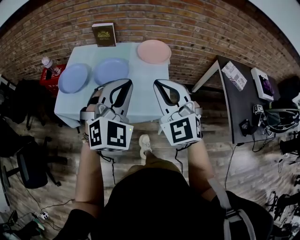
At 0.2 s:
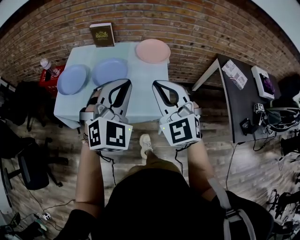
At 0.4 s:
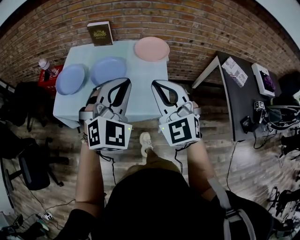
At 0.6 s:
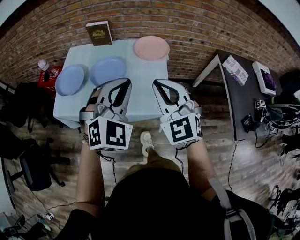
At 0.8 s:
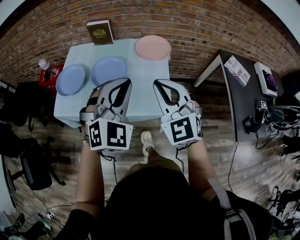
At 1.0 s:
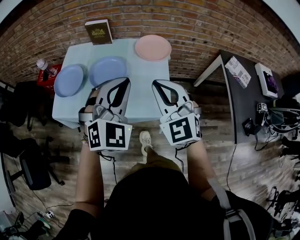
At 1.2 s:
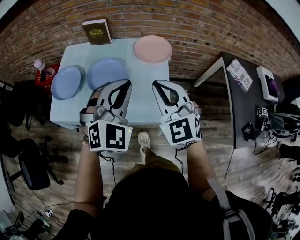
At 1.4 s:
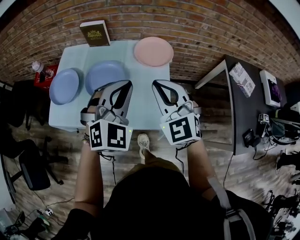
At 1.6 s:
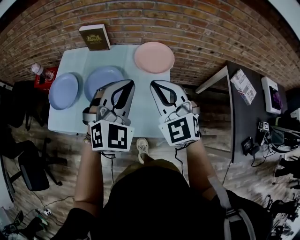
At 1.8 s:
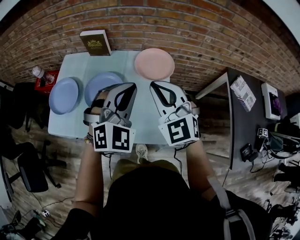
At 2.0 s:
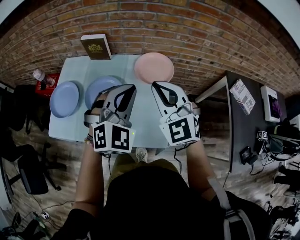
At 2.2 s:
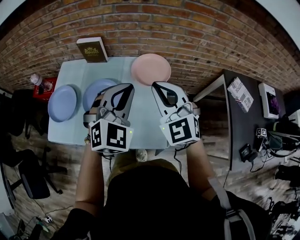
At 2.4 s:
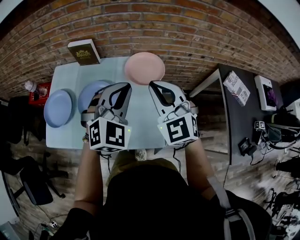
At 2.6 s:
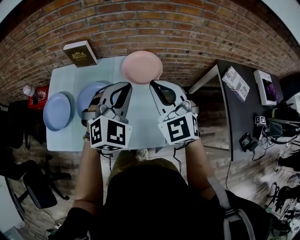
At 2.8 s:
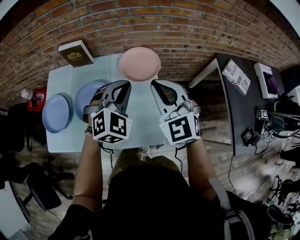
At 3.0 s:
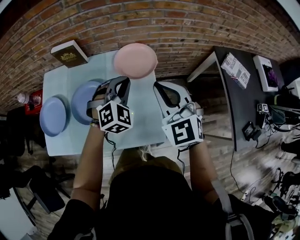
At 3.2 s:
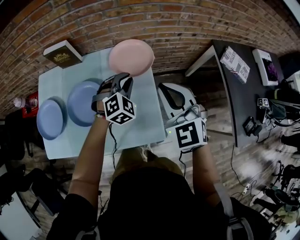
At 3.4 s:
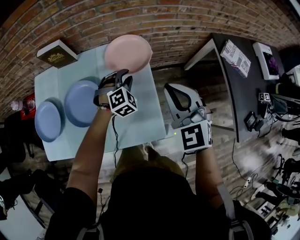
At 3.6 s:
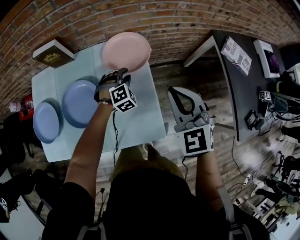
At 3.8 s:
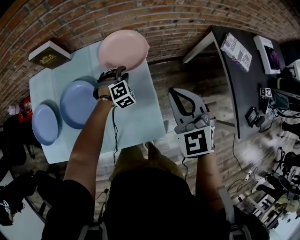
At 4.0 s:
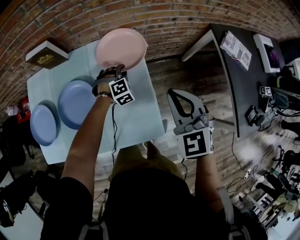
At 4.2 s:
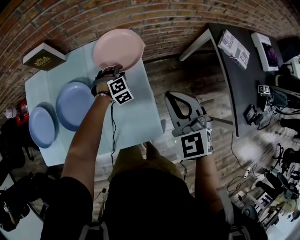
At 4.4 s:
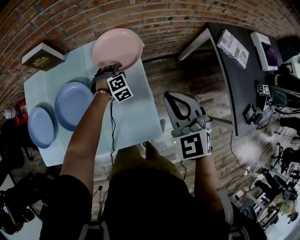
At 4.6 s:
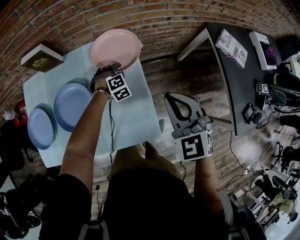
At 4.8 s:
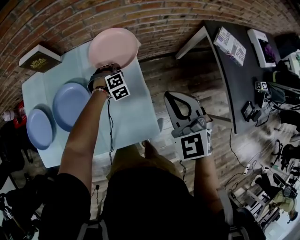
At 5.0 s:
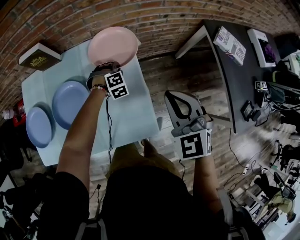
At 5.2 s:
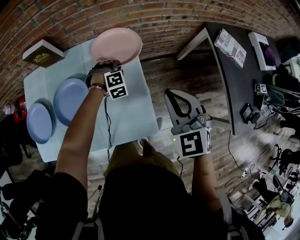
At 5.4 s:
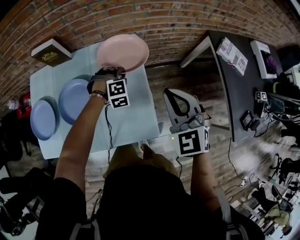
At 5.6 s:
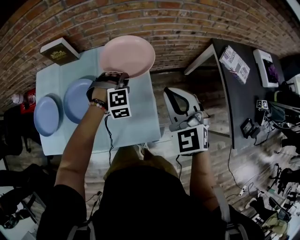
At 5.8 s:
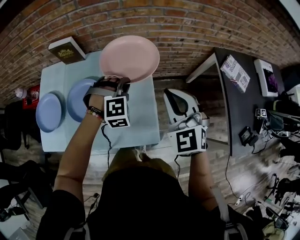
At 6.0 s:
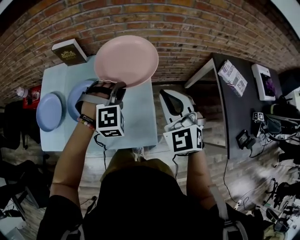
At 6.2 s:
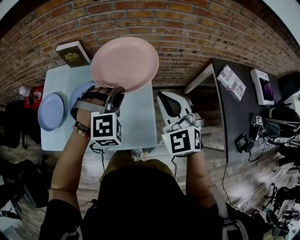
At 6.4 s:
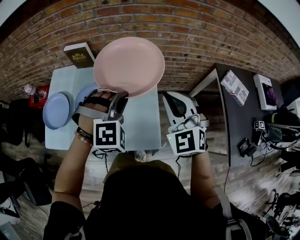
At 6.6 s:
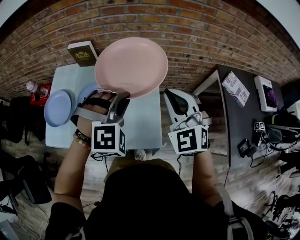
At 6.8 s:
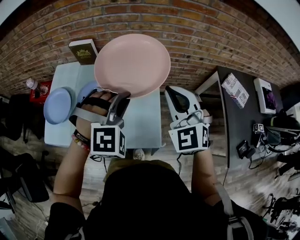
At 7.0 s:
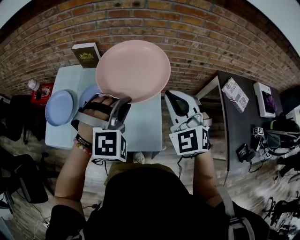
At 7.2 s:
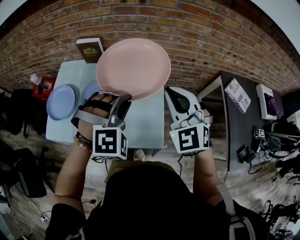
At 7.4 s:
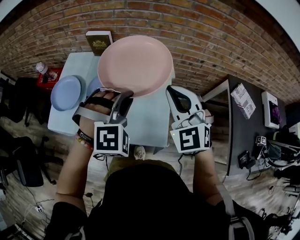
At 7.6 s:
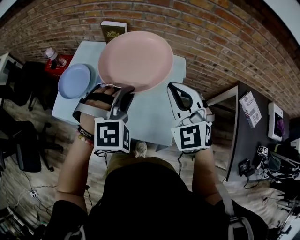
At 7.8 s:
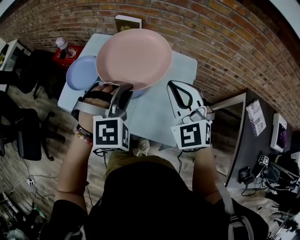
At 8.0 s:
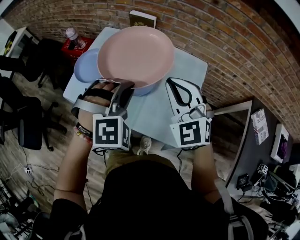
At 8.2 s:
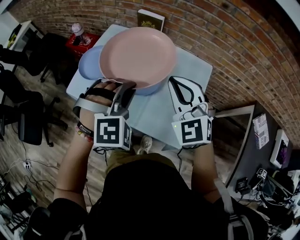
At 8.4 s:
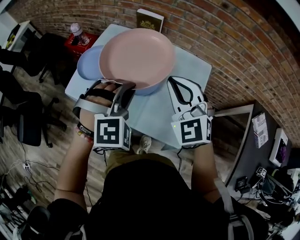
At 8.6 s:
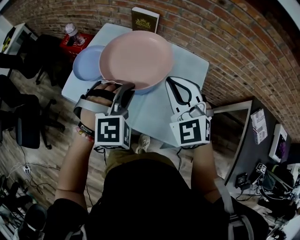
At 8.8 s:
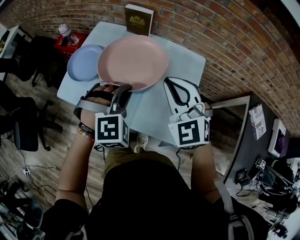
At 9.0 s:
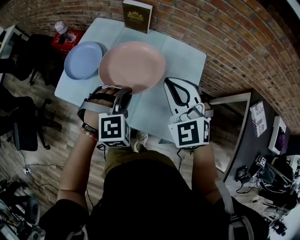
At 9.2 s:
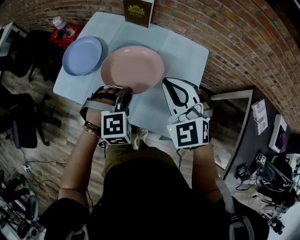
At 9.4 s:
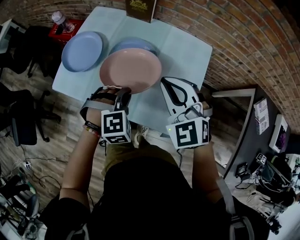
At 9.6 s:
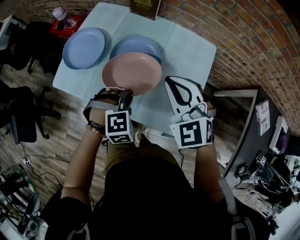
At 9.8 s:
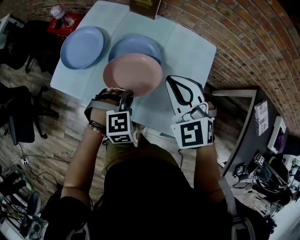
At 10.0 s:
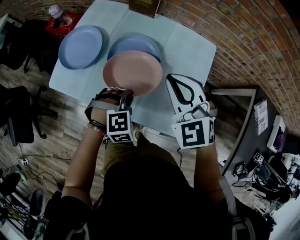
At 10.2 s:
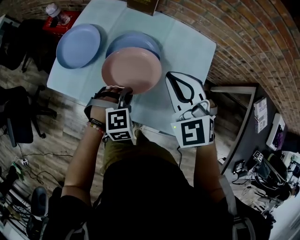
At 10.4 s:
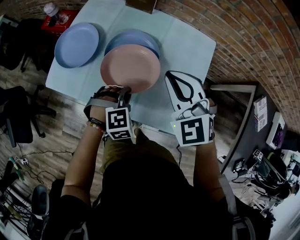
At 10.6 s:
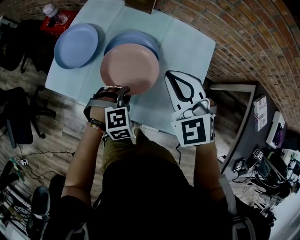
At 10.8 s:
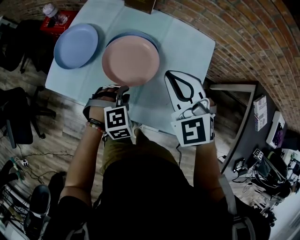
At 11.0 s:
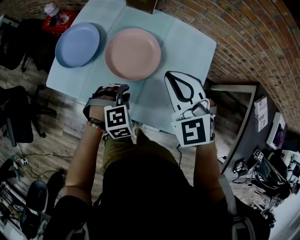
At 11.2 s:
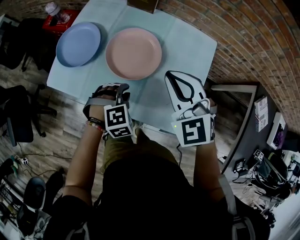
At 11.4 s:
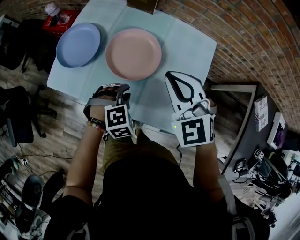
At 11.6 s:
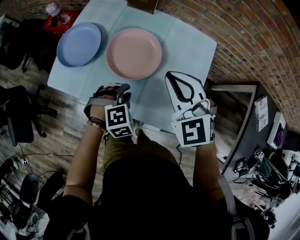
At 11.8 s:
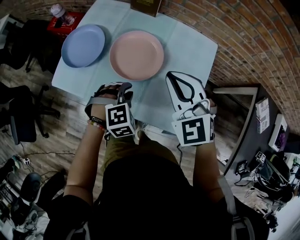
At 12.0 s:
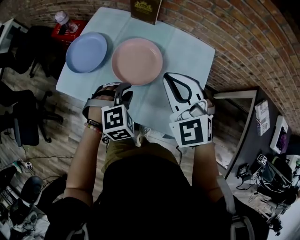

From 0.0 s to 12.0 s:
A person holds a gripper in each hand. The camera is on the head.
From 0.0 s to 1.6 s: Both grippers move forward, approximately 20 cm.
From 1.6 s to 3.0 s: The right gripper shifts about 10 cm to the right and forward; the left gripper moves forward, downward and to the right, roughly 20 cm.
From 3.0 s to 4.4 s: The left gripper heads downward and forward, covering roughly 25 cm, turns by some 30 degrees, and opens up. The right gripper travels downward and to the right by some 10 cm.
From 4.4 s to 6.0 s: The right gripper travels upward by approximately 10 cm. Meanwhile the left gripper goes roughly 30 cm upward and backward, and closes up.
From 6.0 s to 7.6 s: The right gripper travels to the left by roughly 10 cm; the left gripper goes about 20 cm to the left, backward and upward.
From 7.6 s to 9.0 s: The left gripper goes roughly 15 cm downward and to the left; the right gripper travels to the left and downward by approximately 10 cm.
From 9.0 s to 10.4 s: The left gripper shifts roughly 15 cm downward. The right gripper goes approximately 5 cm downward.
From 10.4 s to 12.0 s: The right gripper changes place by roughly 5 cm. Meanwhile the left gripper shifts some 10 cm upward.

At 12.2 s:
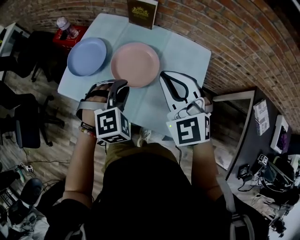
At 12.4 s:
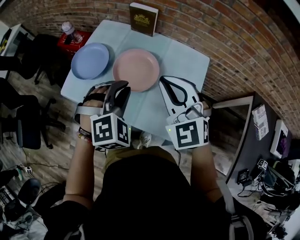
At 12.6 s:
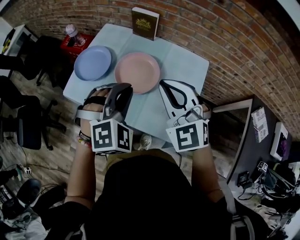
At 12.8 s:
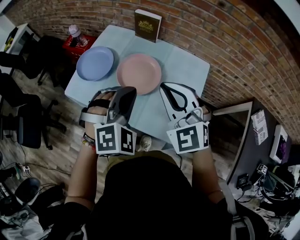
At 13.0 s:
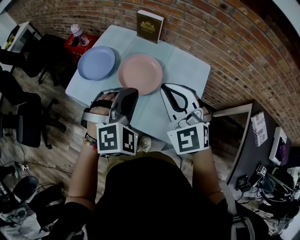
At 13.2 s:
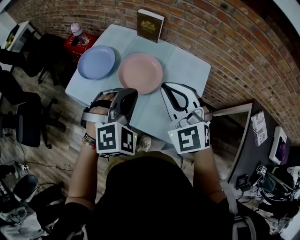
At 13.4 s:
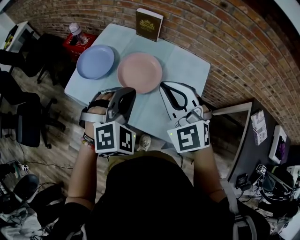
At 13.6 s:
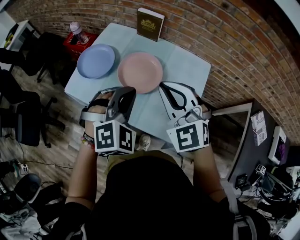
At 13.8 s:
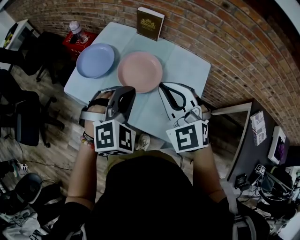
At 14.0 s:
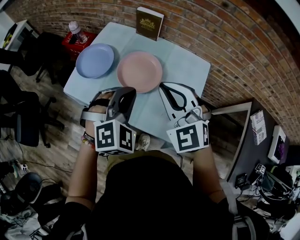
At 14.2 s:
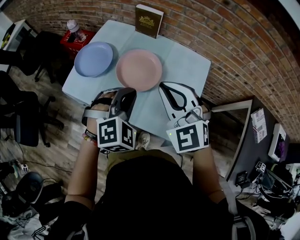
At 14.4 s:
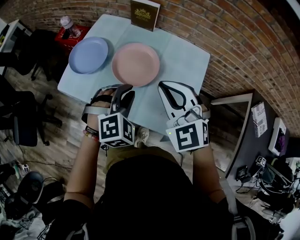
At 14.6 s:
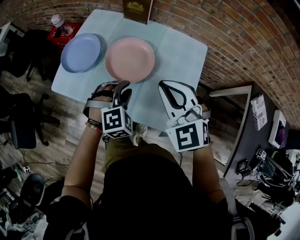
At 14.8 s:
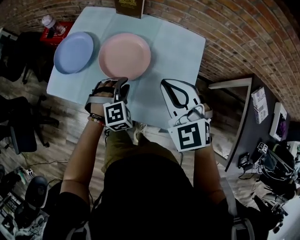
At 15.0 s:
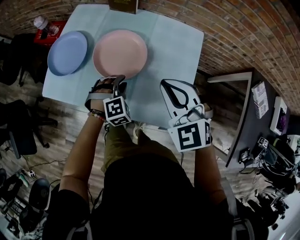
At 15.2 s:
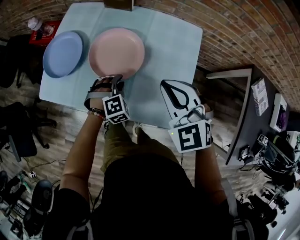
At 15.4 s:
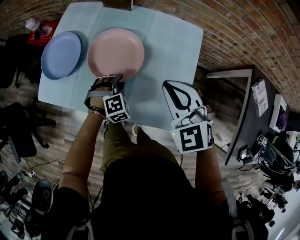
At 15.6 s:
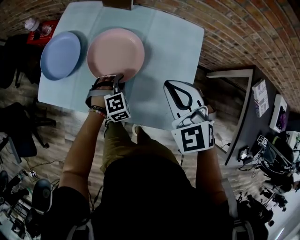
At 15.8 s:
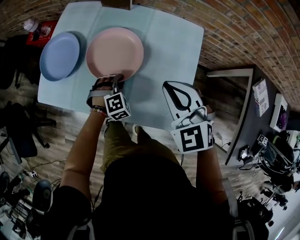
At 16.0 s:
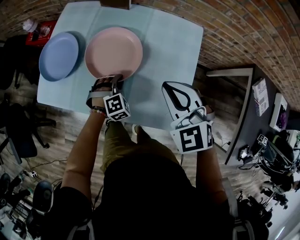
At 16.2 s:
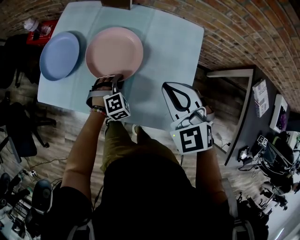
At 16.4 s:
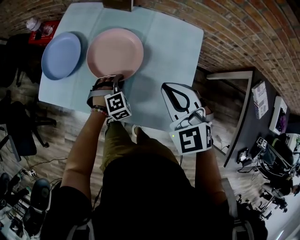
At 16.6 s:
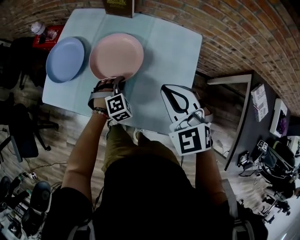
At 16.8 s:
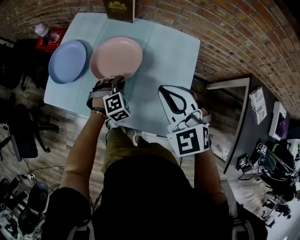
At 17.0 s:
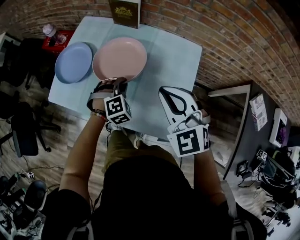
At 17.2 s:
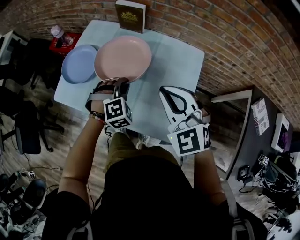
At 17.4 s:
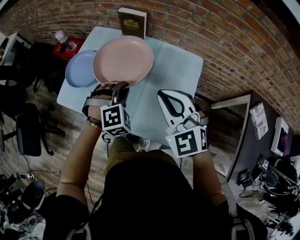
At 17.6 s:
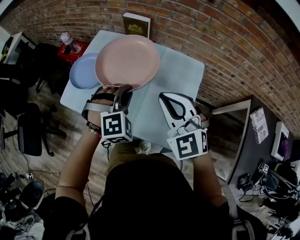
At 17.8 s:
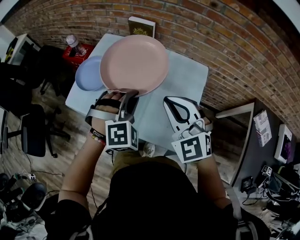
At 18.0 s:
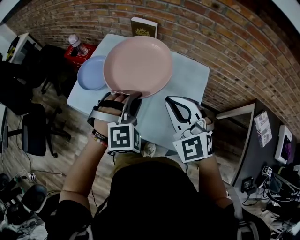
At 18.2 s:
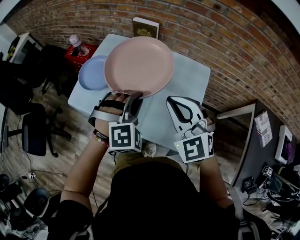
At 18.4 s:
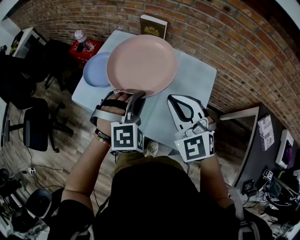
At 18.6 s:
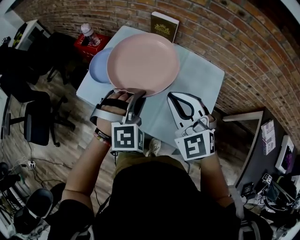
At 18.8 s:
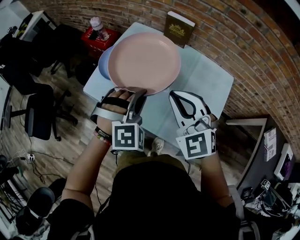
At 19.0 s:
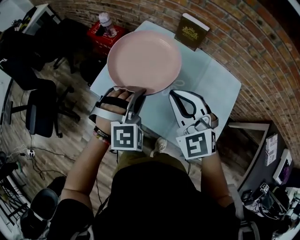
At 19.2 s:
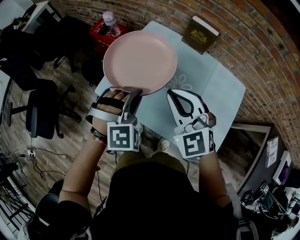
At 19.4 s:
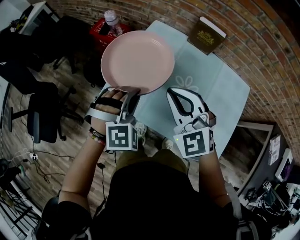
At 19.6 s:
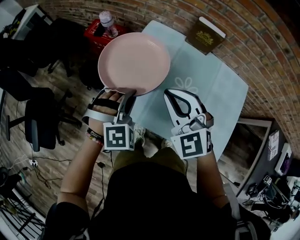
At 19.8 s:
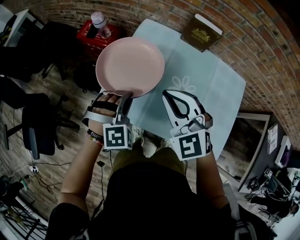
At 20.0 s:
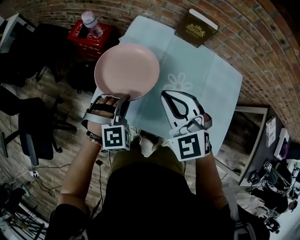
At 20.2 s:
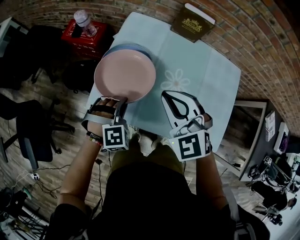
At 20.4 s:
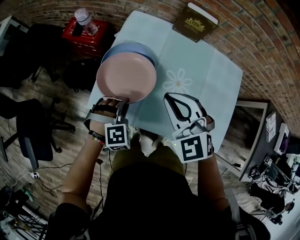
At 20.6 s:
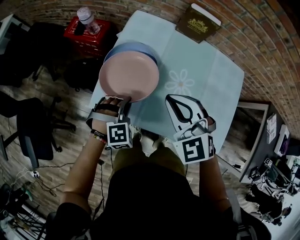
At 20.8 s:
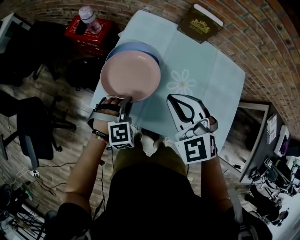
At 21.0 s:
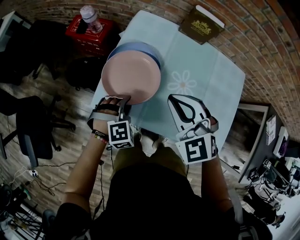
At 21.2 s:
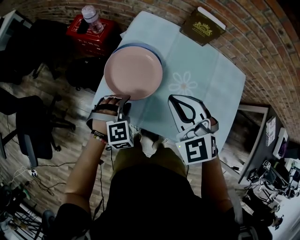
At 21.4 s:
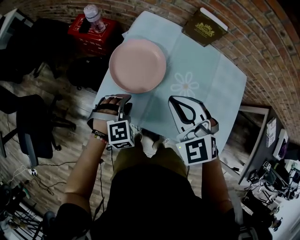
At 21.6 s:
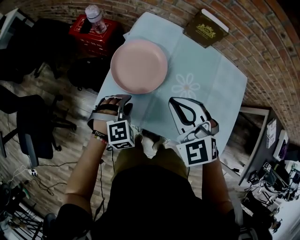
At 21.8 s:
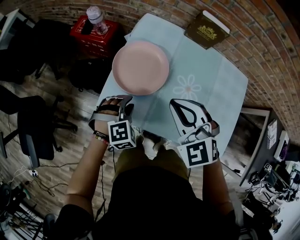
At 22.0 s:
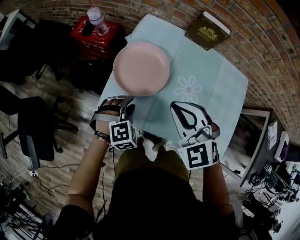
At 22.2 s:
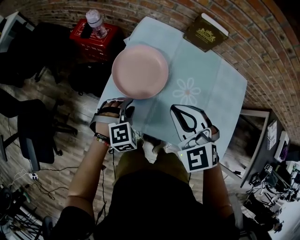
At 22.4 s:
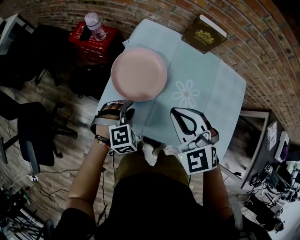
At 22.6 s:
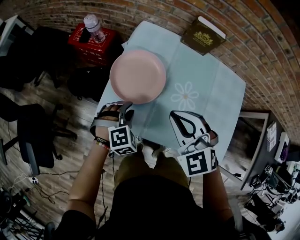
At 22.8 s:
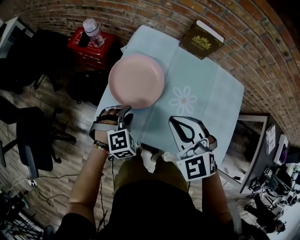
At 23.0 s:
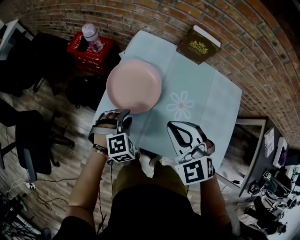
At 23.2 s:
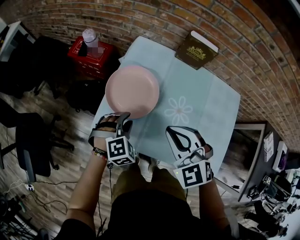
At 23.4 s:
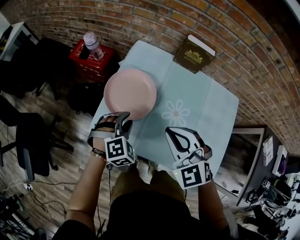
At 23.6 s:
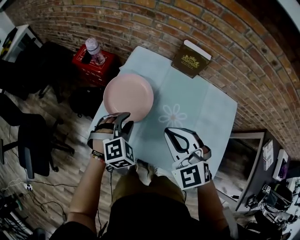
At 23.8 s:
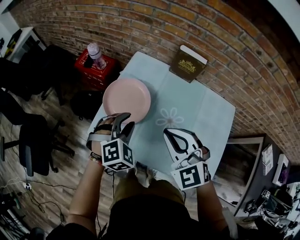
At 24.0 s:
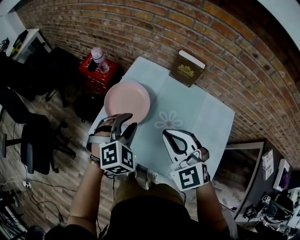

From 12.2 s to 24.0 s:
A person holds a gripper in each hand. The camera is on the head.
From 12.2 s to 13.6 s: The left gripper moves upward, roughly 10 cm, while the right gripper changes place by roughly 5 cm.
From 13.6 s to 15.2 s: The right gripper is displaced downward and to the right by about 15 cm; the left gripper shifts roughly 30 cm downward, rotates some 20 degrees, and opens up.
From 15.2 s to 16.6 s: The grippers stay close to where they were, moving slightly.
From 16.6 s to 18.2 s: The right gripper is displaced upward by some 10 cm, while the left gripper is displaced upward by some 25 cm.
From 18.2 s to 19.6 s: Both grippers travel together to the left and forward, some 35 cm.
From 19.6 s to 21.0 s: The right gripper shifts approximately 5 cm downward. The left gripper is displaced downward by roughly 15 cm, and opens up.
From 21.0 s to 22.6 s: The grippers stay close to where they were, moving slightly.
From 22.6 s to 24.0 s: The right gripper moves to the right and upward, about 10 cm; the left gripper moves upward and to the right, approximately 20 cm.
